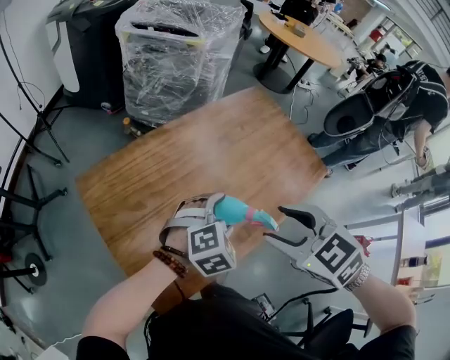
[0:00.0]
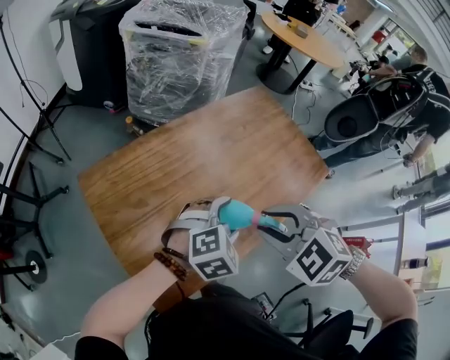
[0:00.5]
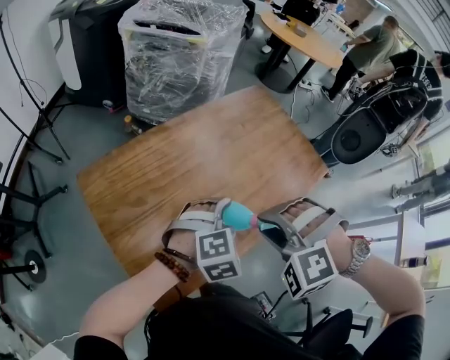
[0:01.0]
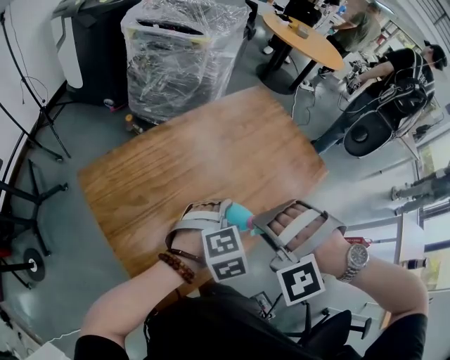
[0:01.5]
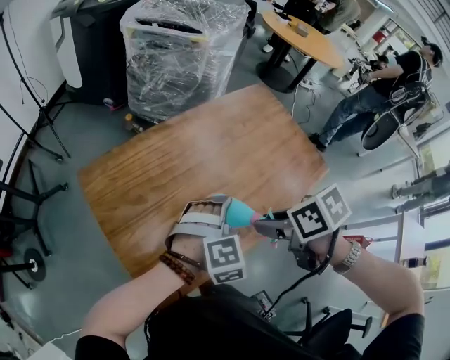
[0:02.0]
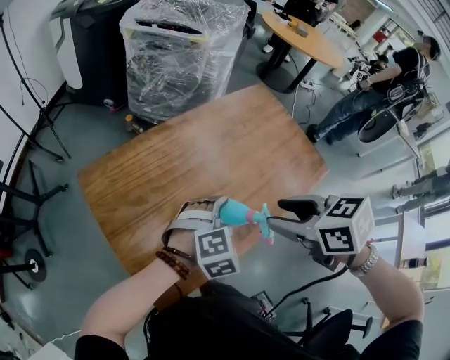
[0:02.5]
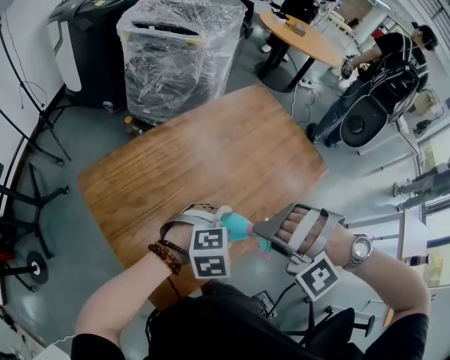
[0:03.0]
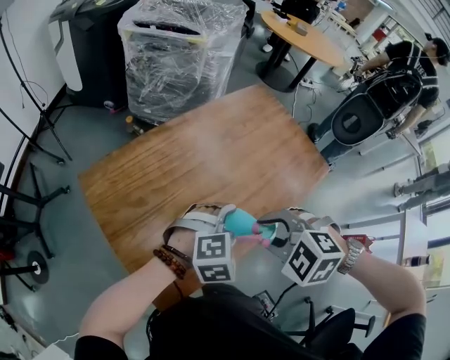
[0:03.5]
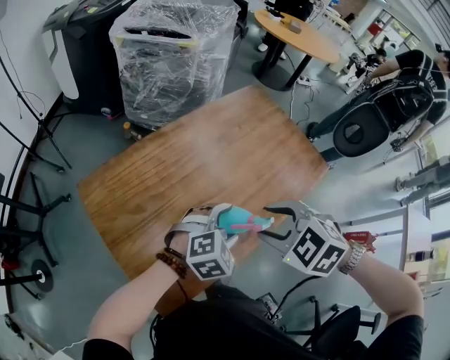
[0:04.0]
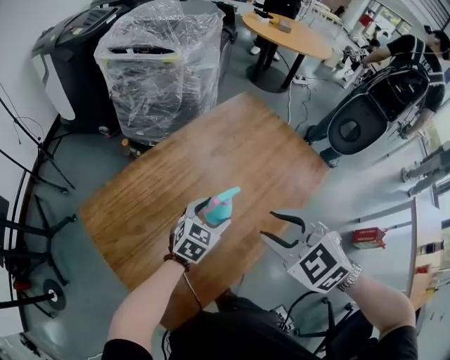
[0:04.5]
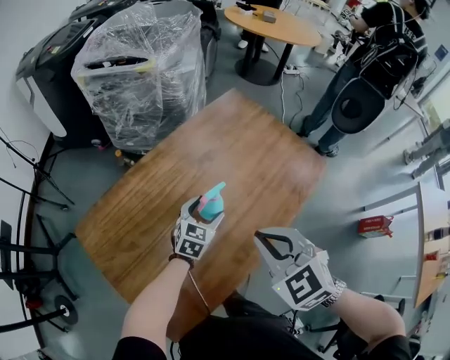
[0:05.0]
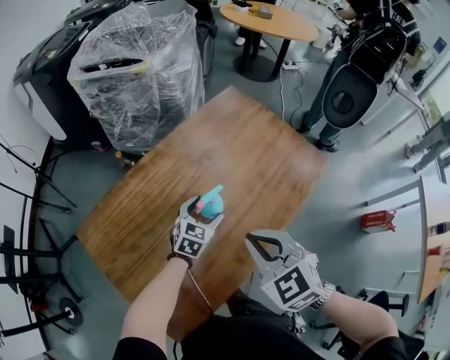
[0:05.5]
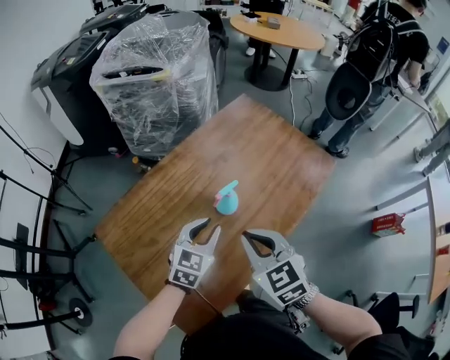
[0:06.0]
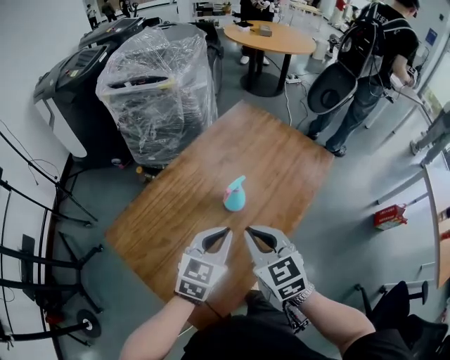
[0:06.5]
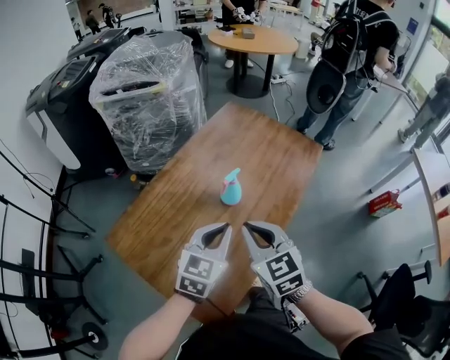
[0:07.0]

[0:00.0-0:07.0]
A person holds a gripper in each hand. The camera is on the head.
0:00.0 to 0:02.0: The right gripper goes approximately 5 cm downward, twists about 40 degrees clockwise, seen from behind, and closes its fingers.
0:02.0 to 0:03.5: The right gripper rolls counterclockwise, seen from behind, by roughly 70 degrees.
0:03.5 to 0:05.0: The right gripper is displaced forward by about 5 cm, turns by approximately 40 degrees, and closes. Meanwhile the left gripper is displaced forward and downward by about 20 cm, and turns by about 50 degrees.
0:05.0 to 0:07.0: The right gripper shifts about 10 cm to the left and backward, and changes its angle by about 30 degrees; the left gripper is displaced upward and backward by roughly 25 cm, and closes.

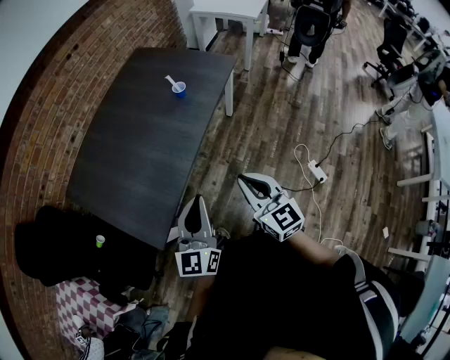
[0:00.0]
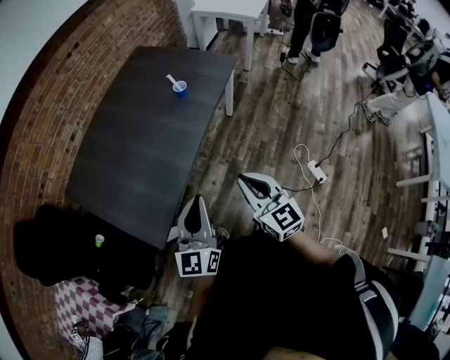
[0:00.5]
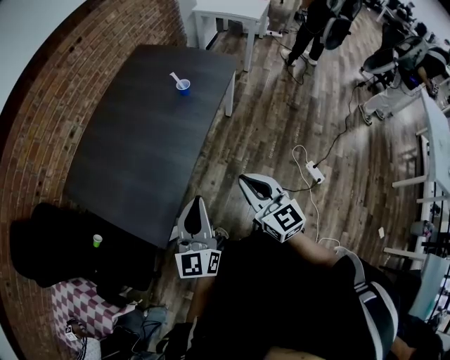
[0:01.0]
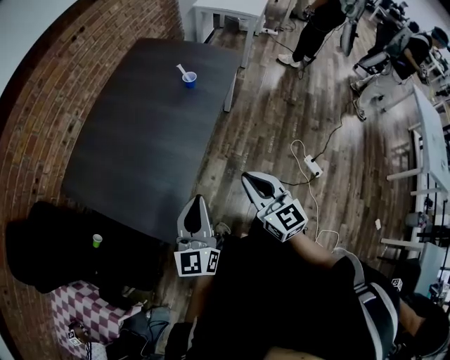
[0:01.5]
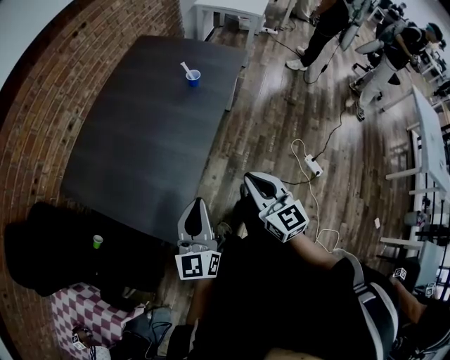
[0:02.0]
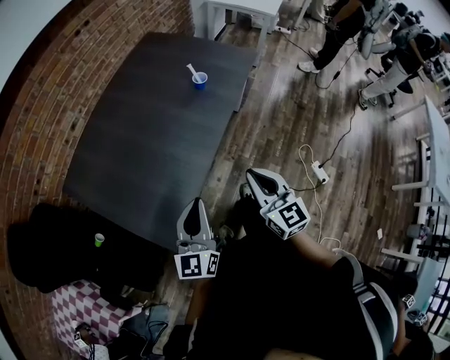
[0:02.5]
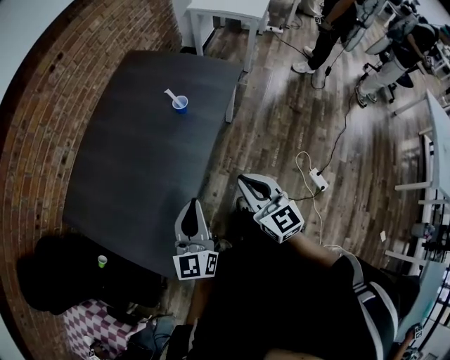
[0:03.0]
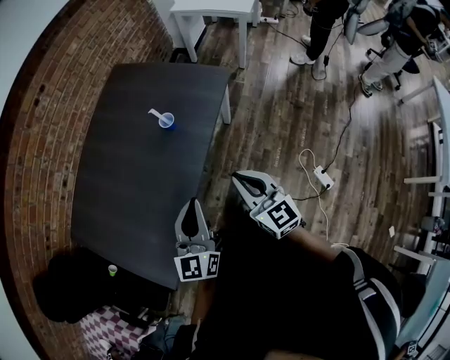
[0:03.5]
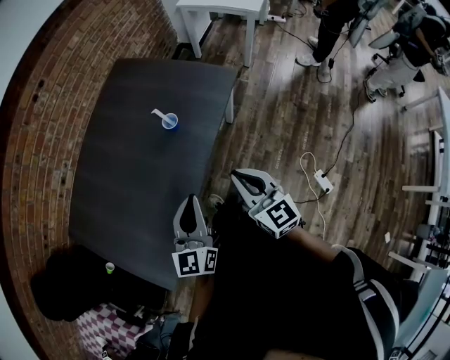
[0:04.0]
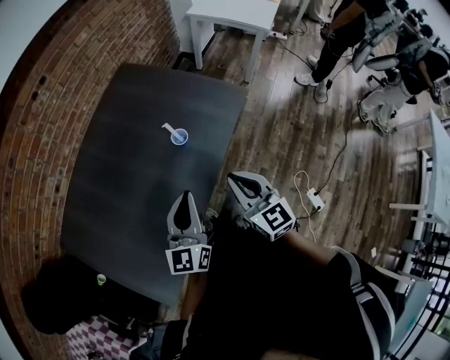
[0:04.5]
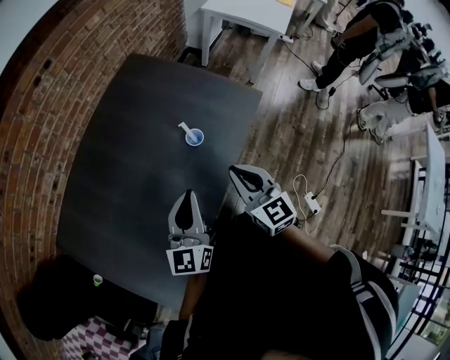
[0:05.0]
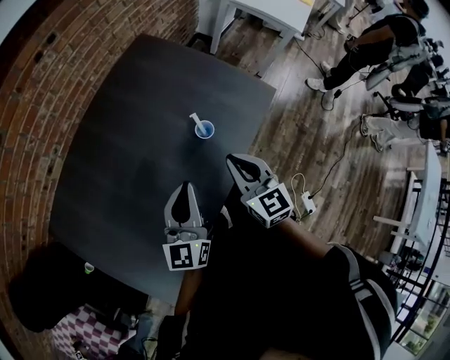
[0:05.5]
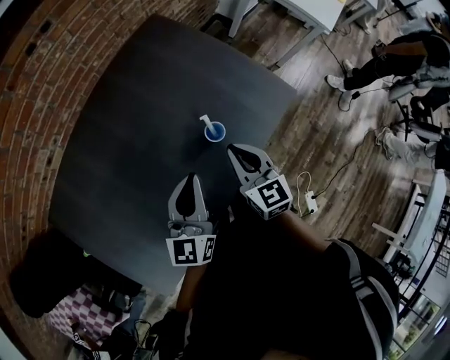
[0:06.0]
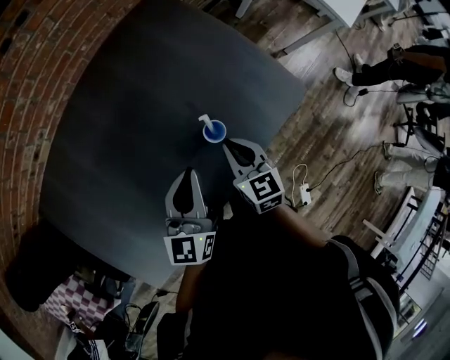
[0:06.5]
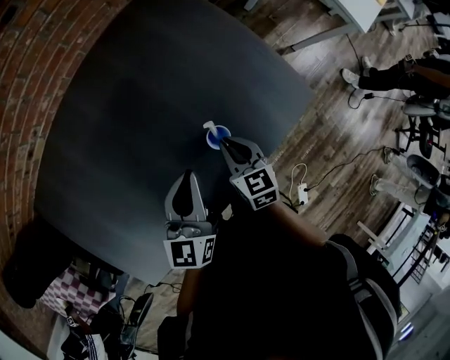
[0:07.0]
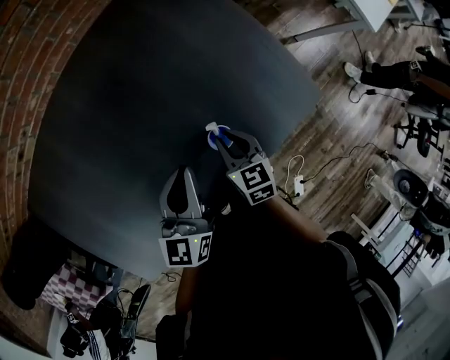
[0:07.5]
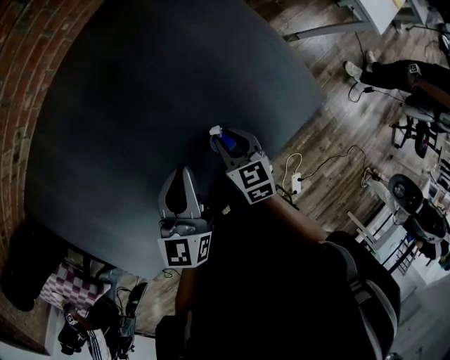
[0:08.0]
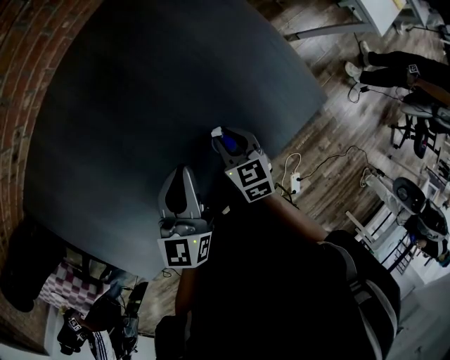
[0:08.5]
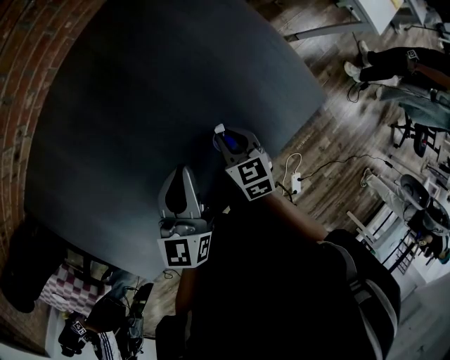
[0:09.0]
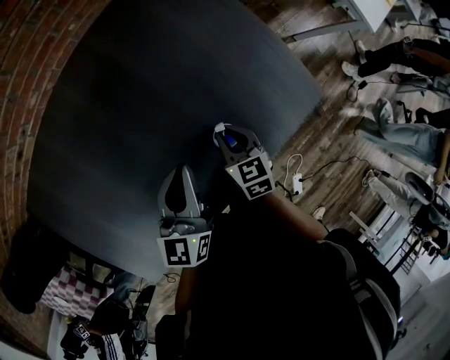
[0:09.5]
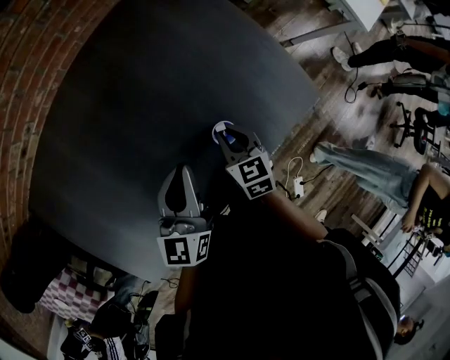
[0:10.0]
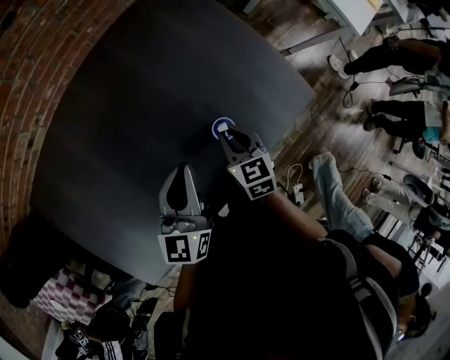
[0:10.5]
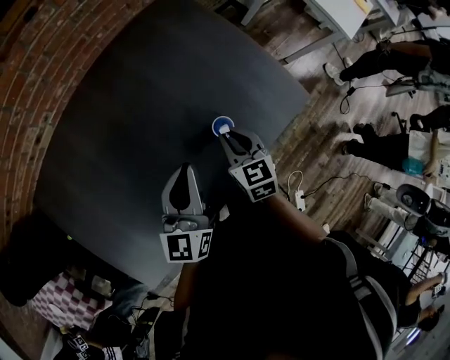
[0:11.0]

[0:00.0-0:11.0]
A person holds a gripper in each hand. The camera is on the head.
0:00.0 to 0:02.0: The two grippers go about 15 cm to the left.
0:02.0 to 0:03.5: Both grippers move forward and to the right, some 30 cm.
0:03.5 to 0:05.5: Both grippers move forward and to the left, about 25 cm.
0:05.5 to 0:07.5: The right gripper goes some 25 cm downward and forward, and changes its angle by roughly 30 degrees. The left gripper moves forward and downward, about 20 cm, and rotates approximately 20 degrees.
0:07.5 to 0:09.0: The grippers move only a little.
0:09.0 to 0:11.0: The left gripper is displaced upward and backward by some 10 cm. Meanwhile the right gripper moves upward, some 10 cm.

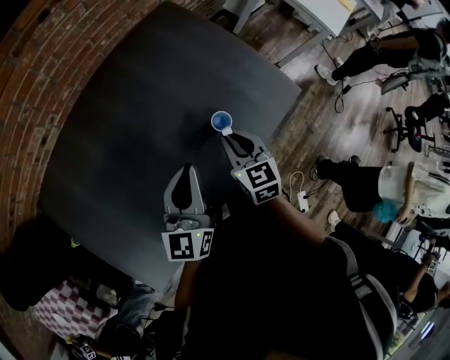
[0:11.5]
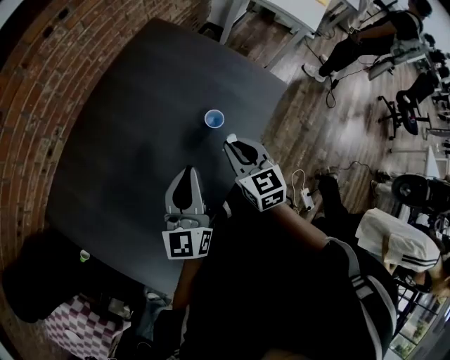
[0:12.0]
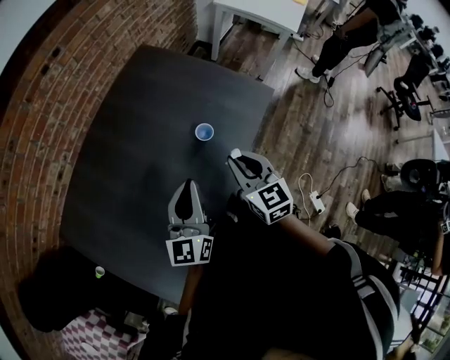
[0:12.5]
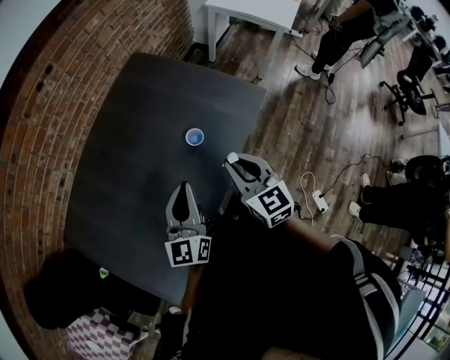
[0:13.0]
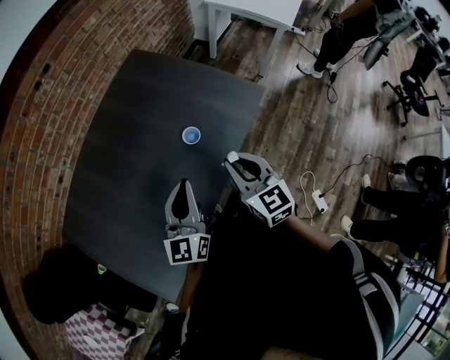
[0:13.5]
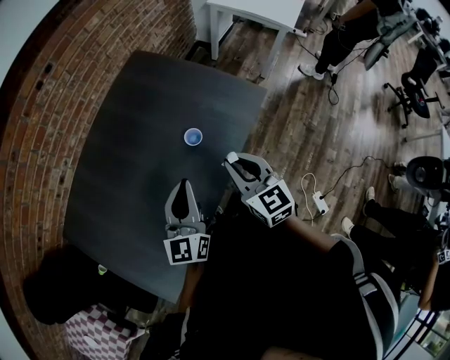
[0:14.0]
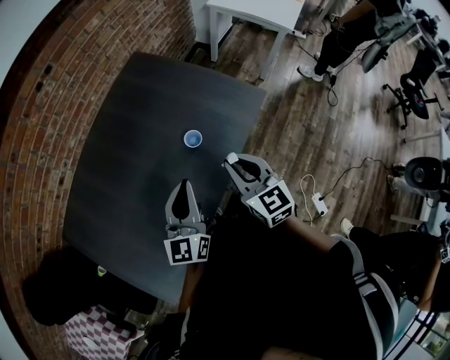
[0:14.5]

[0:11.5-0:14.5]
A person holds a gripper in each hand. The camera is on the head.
0:11.5 to 0:13.0: The right gripper moves backward, upward and to the right, approximately 20 cm; the left gripper is displaced backward and to the right by roughly 10 cm.
0:13.0 to 0:14.5: The grippers move only a little.

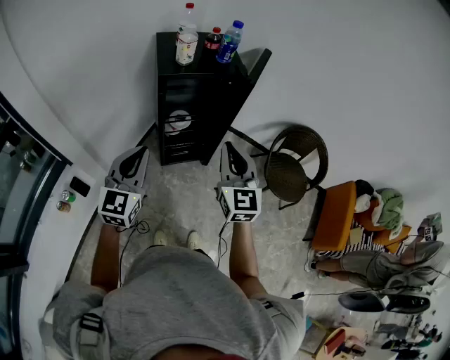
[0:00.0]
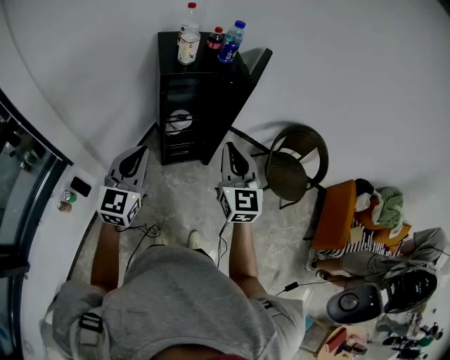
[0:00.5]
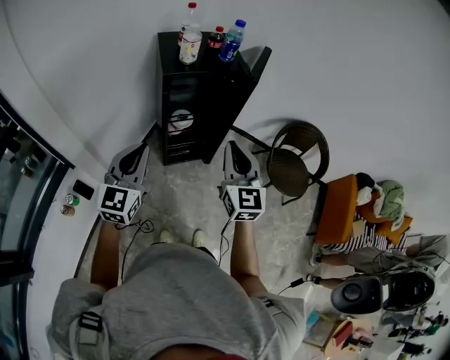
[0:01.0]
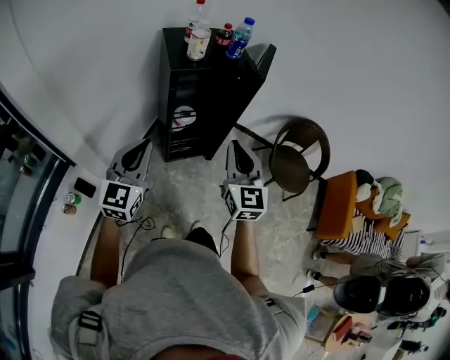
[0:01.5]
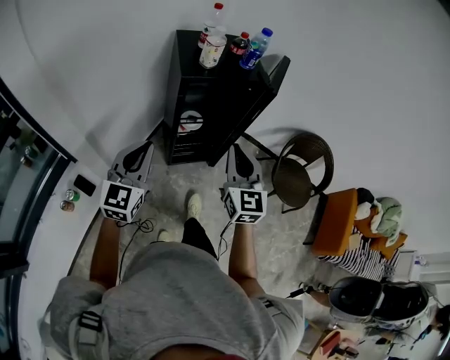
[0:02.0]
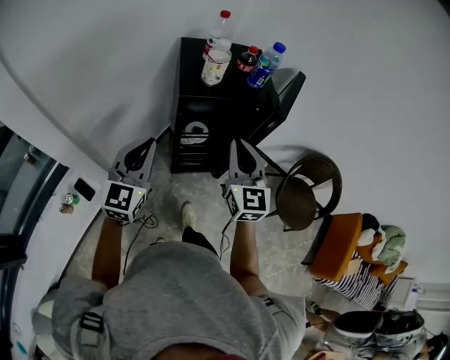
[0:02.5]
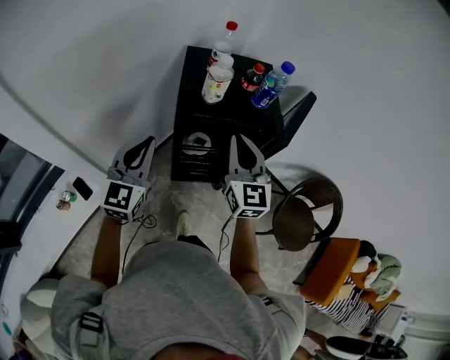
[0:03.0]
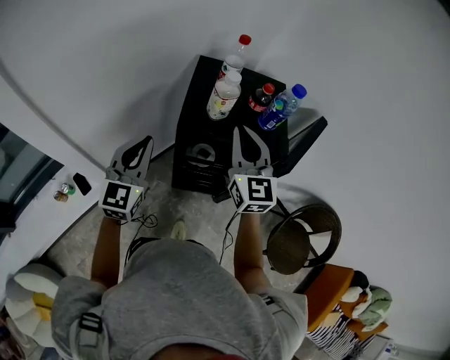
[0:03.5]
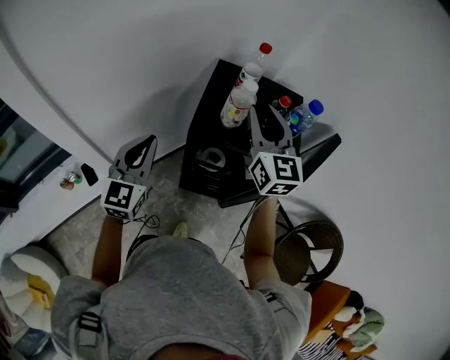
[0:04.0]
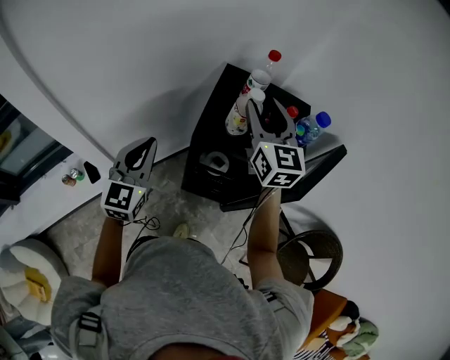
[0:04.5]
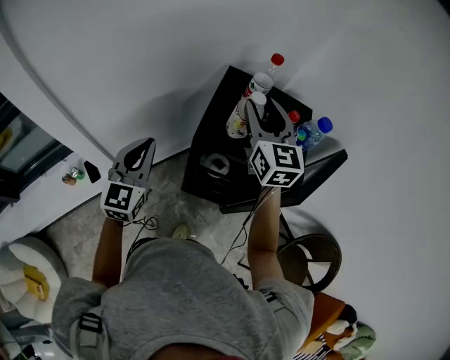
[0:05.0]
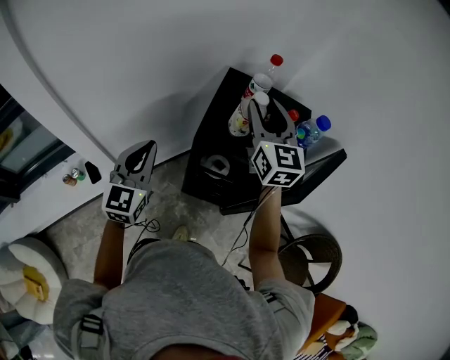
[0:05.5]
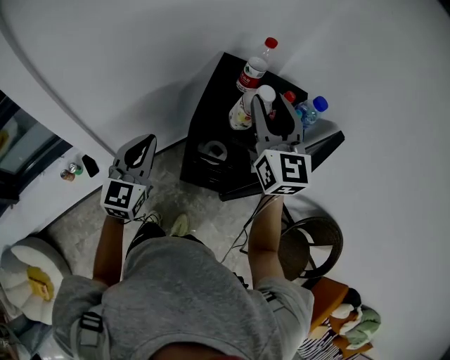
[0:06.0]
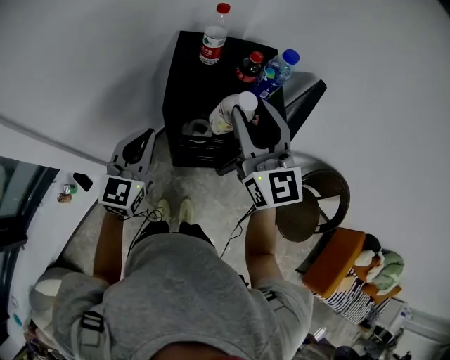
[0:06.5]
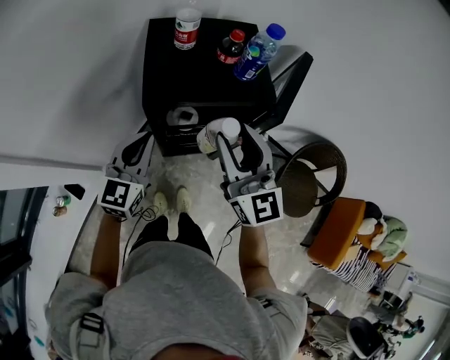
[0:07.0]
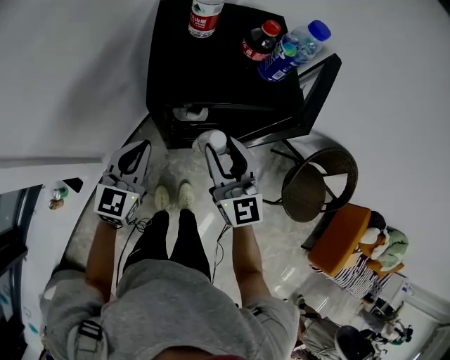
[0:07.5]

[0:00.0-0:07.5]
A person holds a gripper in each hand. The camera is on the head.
0:00.0 to 0:02.0: Both grippers travel together to the left, approximately 5 cm.
0:02.0 to 0:04.0: The right gripper ends up about 35 cm from where it was, turns by approximately 30 degrees, and opens up; the left gripper changes place by approximately 20 cm, and changes its angle by some 30 degrees.
0:04.0 to 0:05.5: The right gripper ends up some 5 cm from where it was.
0:05.5 to 0:07.5: The left gripper moves downward and to the right, approximately 15 cm, and rotates approximately 30 degrees. The right gripper travels downward and backward by approximately 25 cm.
